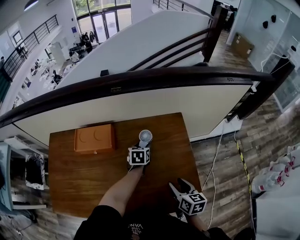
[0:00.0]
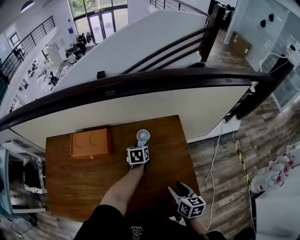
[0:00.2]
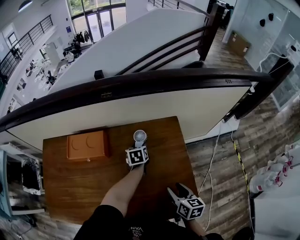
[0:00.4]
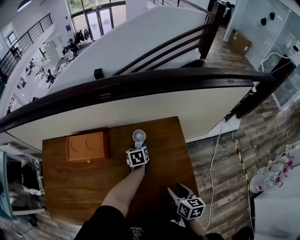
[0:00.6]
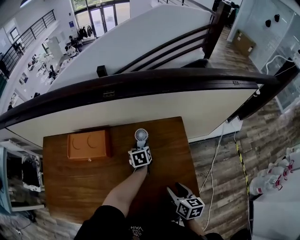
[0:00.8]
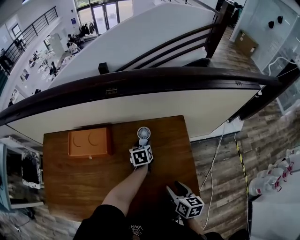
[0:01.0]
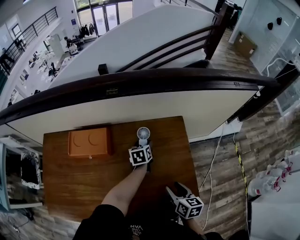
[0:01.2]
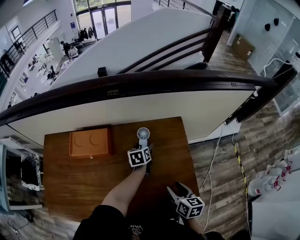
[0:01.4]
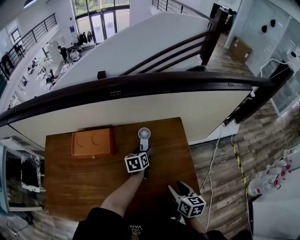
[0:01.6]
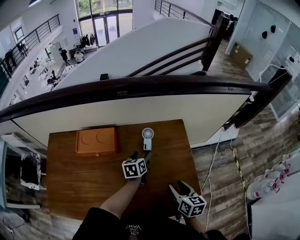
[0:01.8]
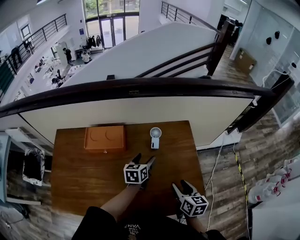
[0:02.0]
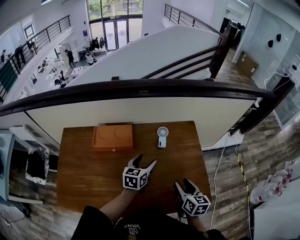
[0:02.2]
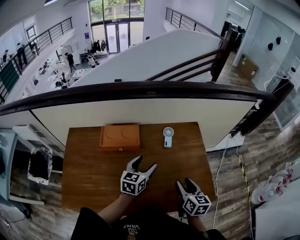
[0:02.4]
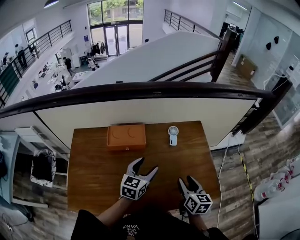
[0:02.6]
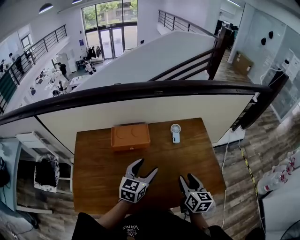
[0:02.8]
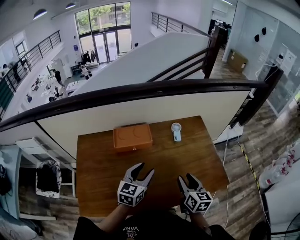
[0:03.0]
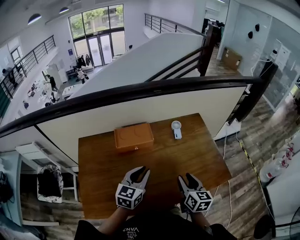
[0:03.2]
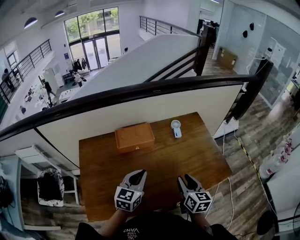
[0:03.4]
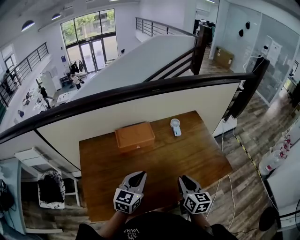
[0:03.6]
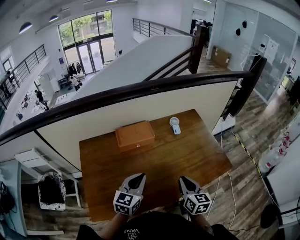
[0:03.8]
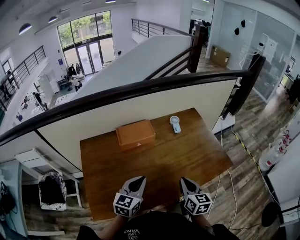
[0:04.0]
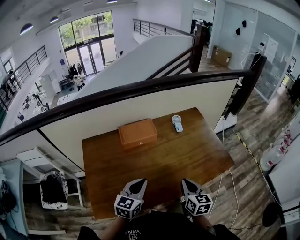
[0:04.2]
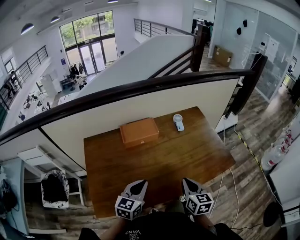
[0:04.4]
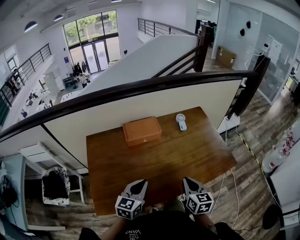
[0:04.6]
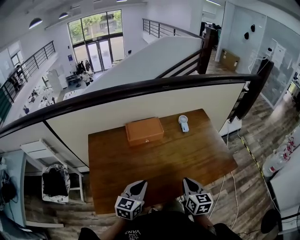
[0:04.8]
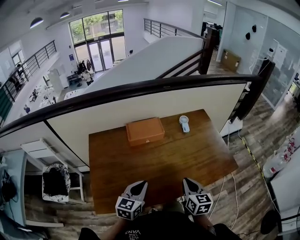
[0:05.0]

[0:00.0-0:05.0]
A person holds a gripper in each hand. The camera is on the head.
0:01.6 to 0:03.4: The right gripper shifts about 30 cm to the left, backward and upward, and turns by roughly 20 degrees. The left gripper heads backward, to the left and upward, covering some 40 cm, rotates approximately 40 degrees, and closes.
0:03.4 to 0:05.0: The left gripper travels backward by roughly 10 cm, while the right gripper heads backward, covering some 5 cm, and closes its fingers.

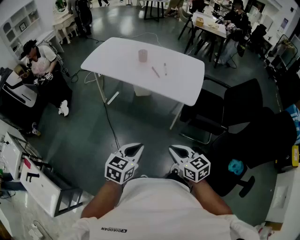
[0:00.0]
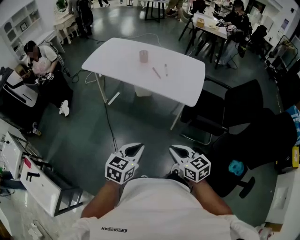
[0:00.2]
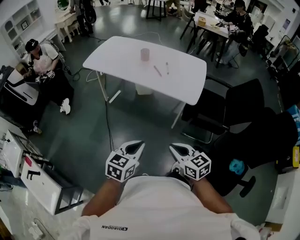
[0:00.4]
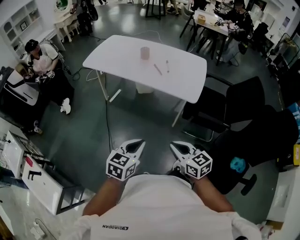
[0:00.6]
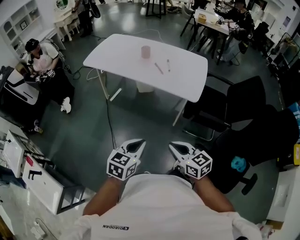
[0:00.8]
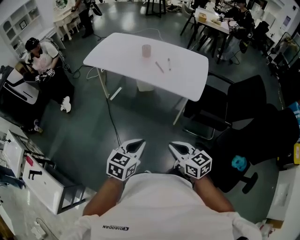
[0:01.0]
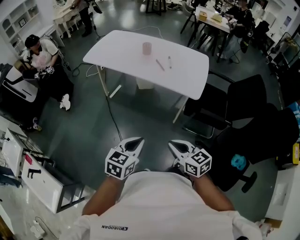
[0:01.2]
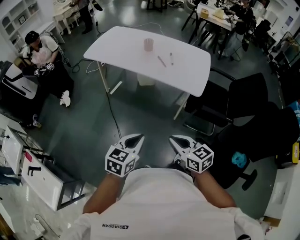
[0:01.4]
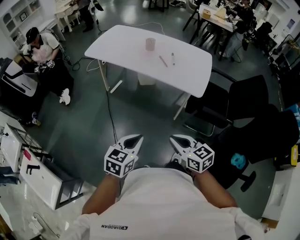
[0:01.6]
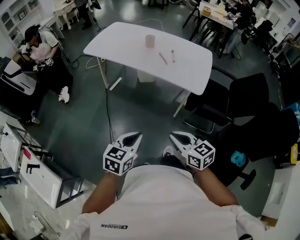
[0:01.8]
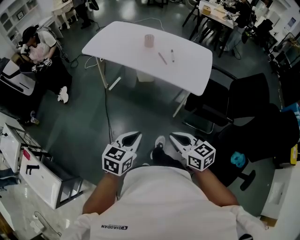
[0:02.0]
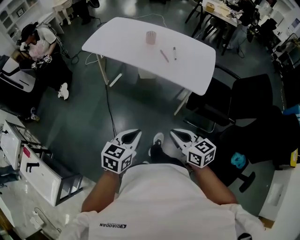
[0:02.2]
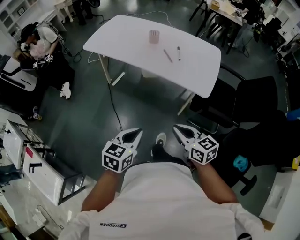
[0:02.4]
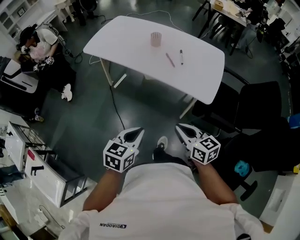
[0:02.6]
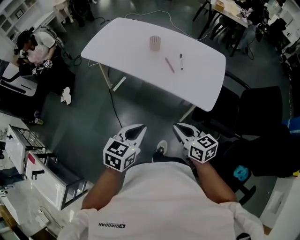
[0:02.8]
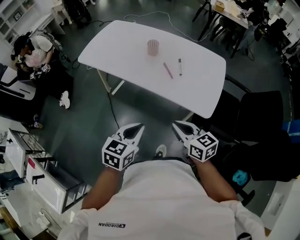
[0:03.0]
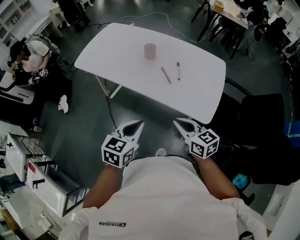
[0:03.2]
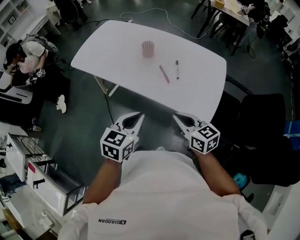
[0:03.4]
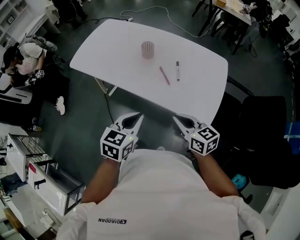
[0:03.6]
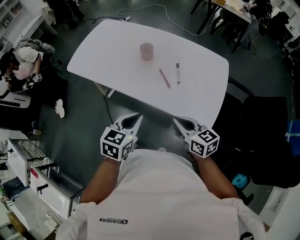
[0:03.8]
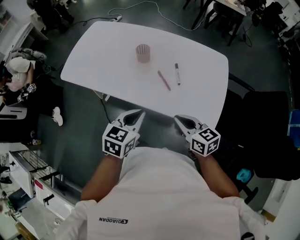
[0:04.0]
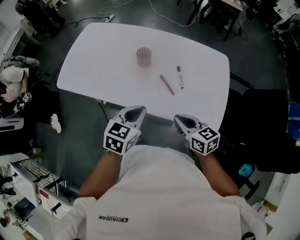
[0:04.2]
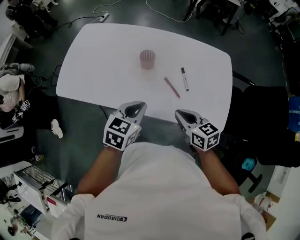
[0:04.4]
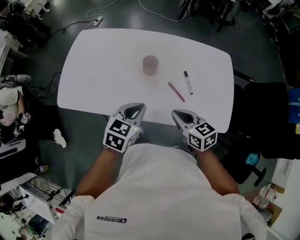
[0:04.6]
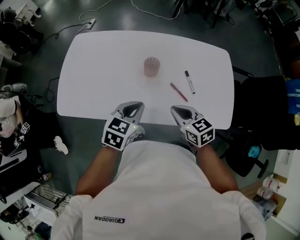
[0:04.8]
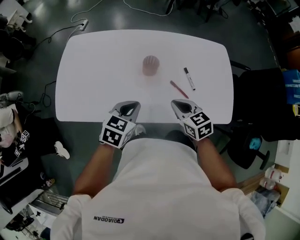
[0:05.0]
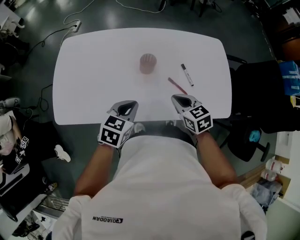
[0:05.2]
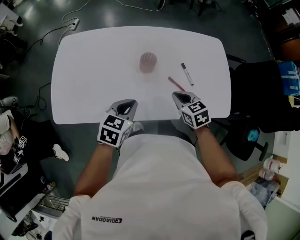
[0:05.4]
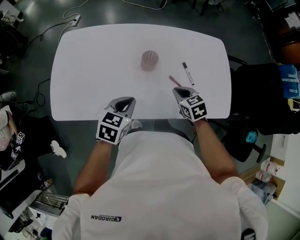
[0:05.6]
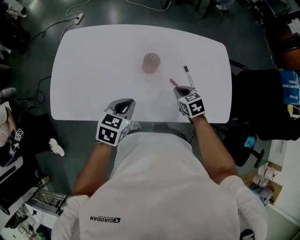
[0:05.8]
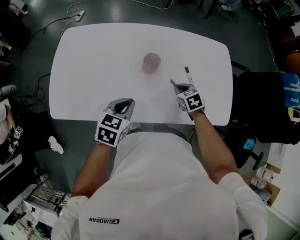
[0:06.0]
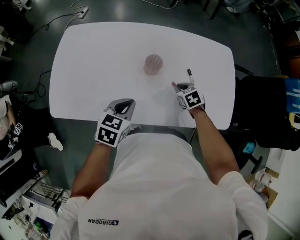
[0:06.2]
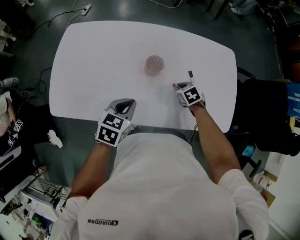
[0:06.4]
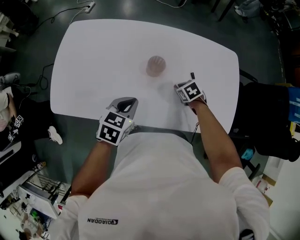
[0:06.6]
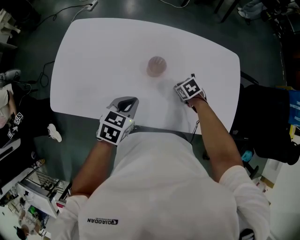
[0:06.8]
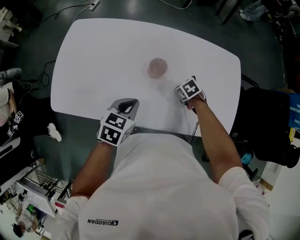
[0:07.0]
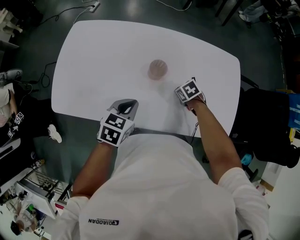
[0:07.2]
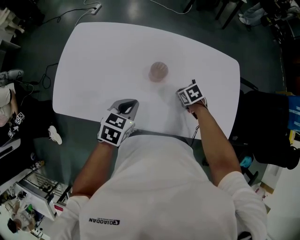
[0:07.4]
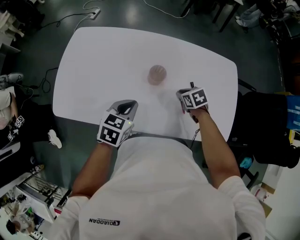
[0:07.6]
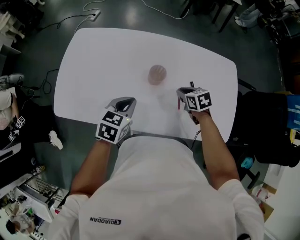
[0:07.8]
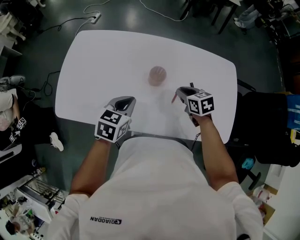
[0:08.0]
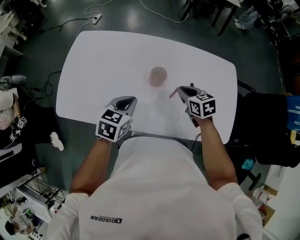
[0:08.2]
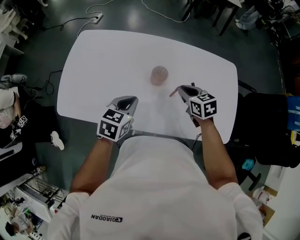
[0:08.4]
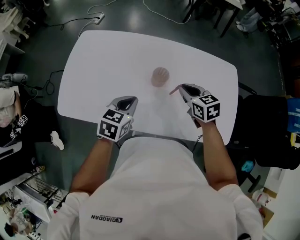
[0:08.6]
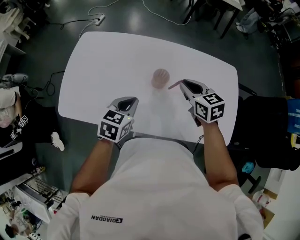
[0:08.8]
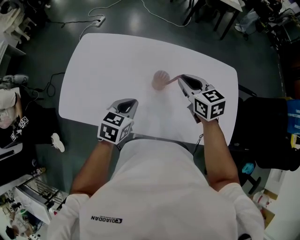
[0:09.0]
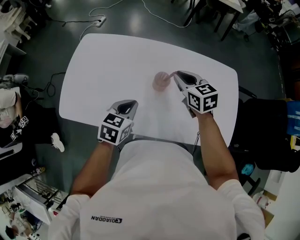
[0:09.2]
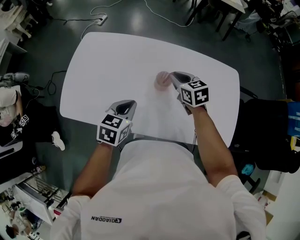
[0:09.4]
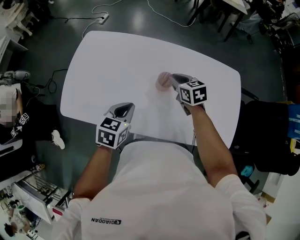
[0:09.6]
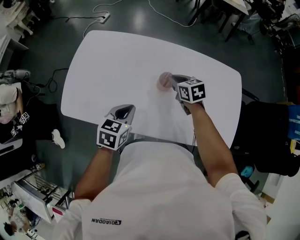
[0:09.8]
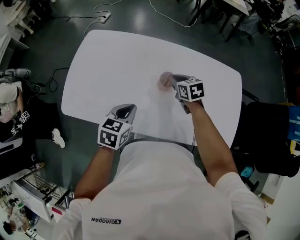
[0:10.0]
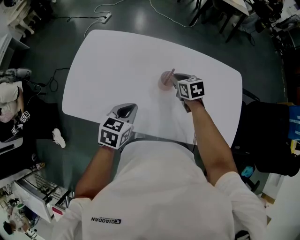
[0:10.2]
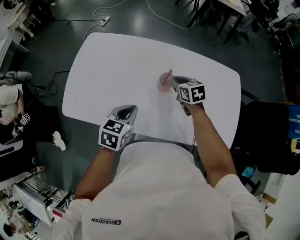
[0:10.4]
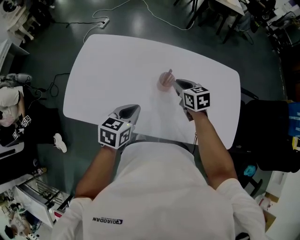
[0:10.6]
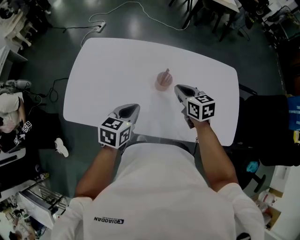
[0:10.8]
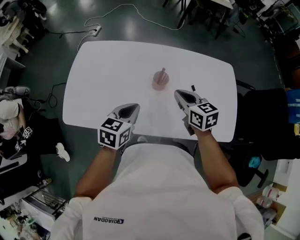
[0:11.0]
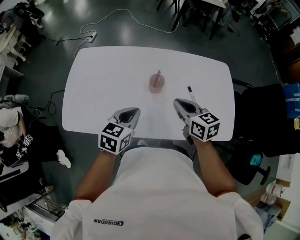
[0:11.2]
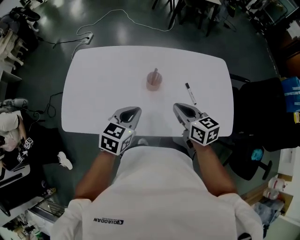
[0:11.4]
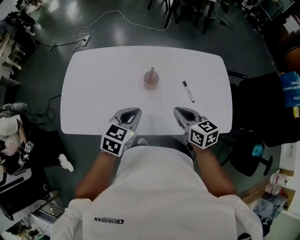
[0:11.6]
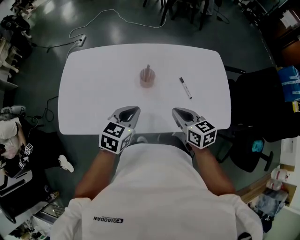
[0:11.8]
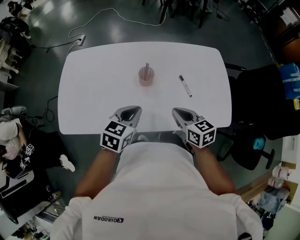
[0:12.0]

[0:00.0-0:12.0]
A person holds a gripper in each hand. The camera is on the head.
0:00.0 to 0:01.6: Both grippers travel together to the left, roughly 5 cm.
0:01.6 to 0:03.0: The two grippers go approximately 25 cm forward.
0:03.0 to 0:04.4: The grippers both shift forward by some 30 cm.
0:04.4 to 0:06.0: The right gripper goes about 20 cm forward and downward, and rotates approximately 30 degrees, while the left gripper goes about 15 cm to the left, forward and downward.
0:07.6 to 0:09.0: The right gripper shifts about 20 cm upward, and tips its fingers upward by roughly 30 degrees.
0:09.0 to 0:10.4: The right gripper is displaced downward by roughly 10 cm.
0:10.4 to 0:12.0: The right gripper moves backward, roughly 20 cm, while the left gripper is displaced to the right by about 10 cm.

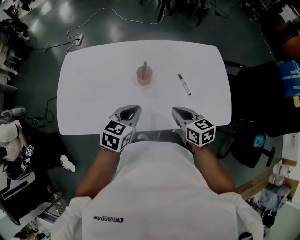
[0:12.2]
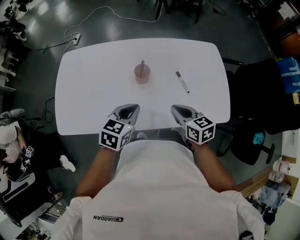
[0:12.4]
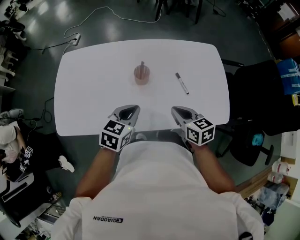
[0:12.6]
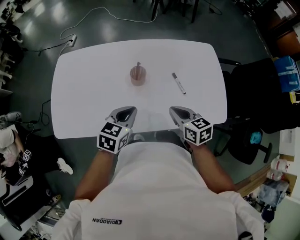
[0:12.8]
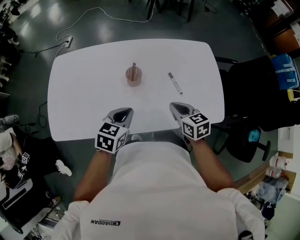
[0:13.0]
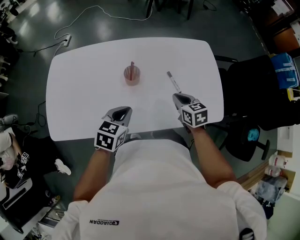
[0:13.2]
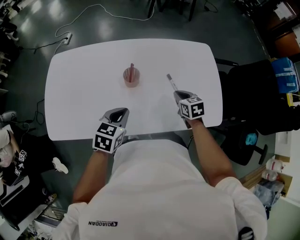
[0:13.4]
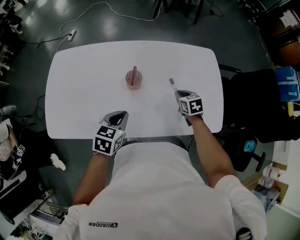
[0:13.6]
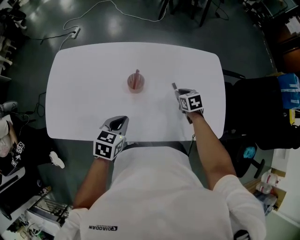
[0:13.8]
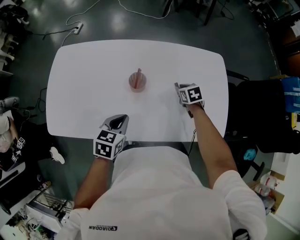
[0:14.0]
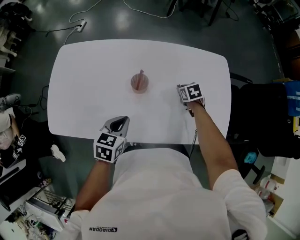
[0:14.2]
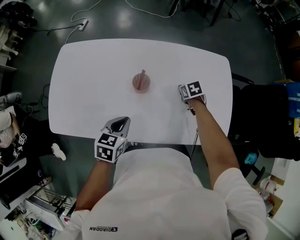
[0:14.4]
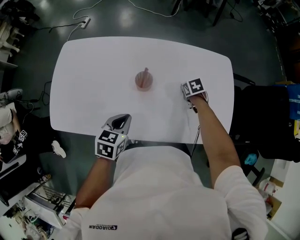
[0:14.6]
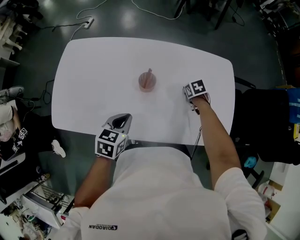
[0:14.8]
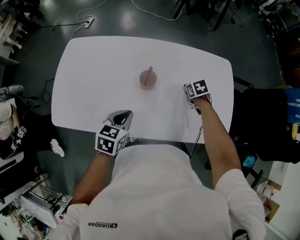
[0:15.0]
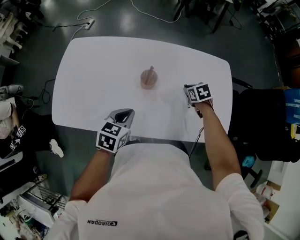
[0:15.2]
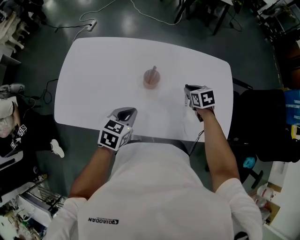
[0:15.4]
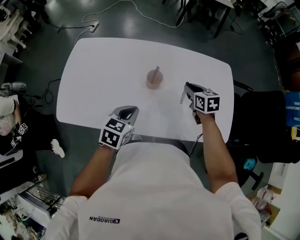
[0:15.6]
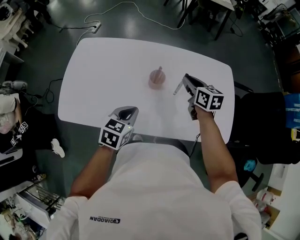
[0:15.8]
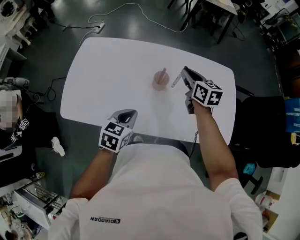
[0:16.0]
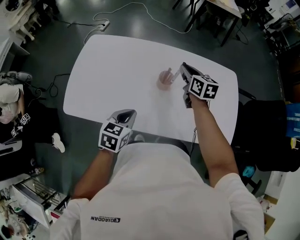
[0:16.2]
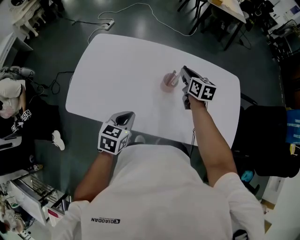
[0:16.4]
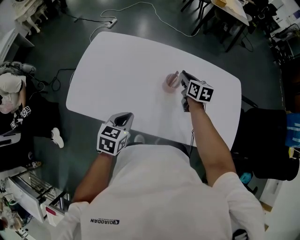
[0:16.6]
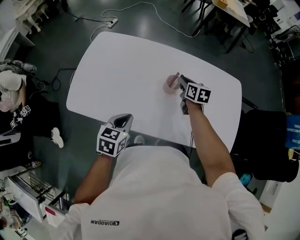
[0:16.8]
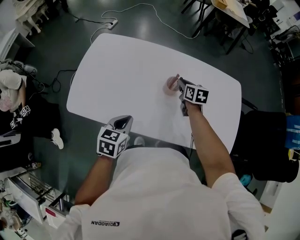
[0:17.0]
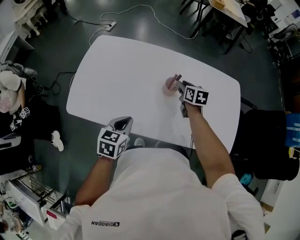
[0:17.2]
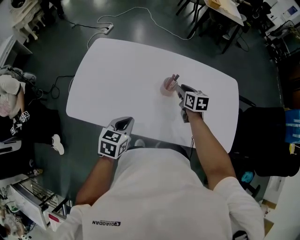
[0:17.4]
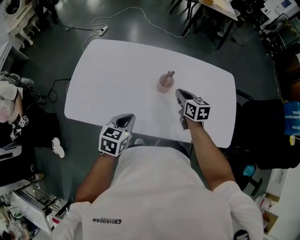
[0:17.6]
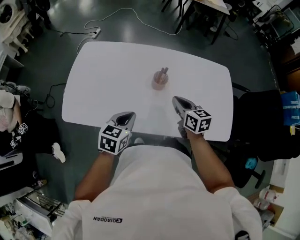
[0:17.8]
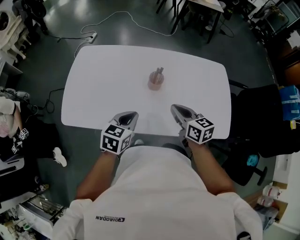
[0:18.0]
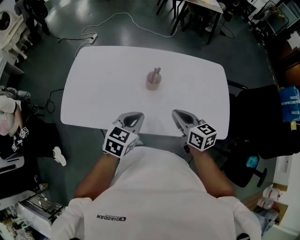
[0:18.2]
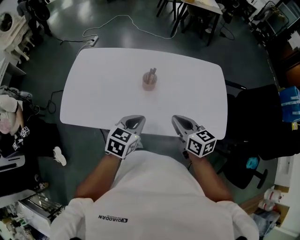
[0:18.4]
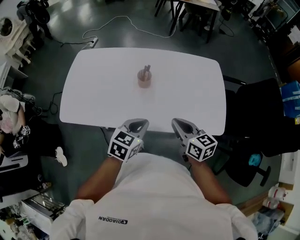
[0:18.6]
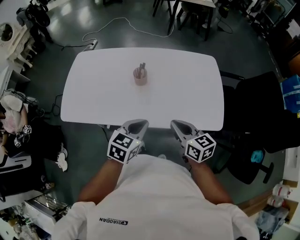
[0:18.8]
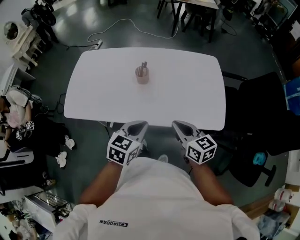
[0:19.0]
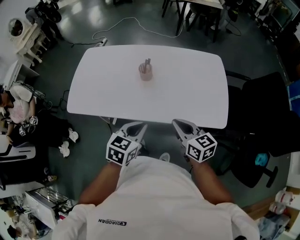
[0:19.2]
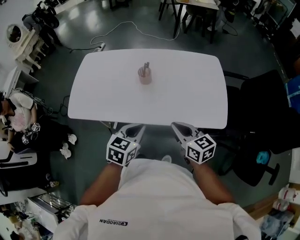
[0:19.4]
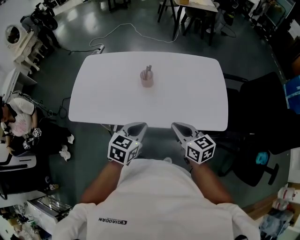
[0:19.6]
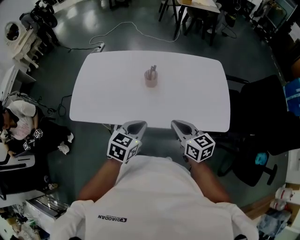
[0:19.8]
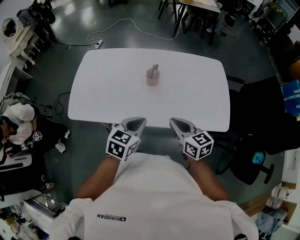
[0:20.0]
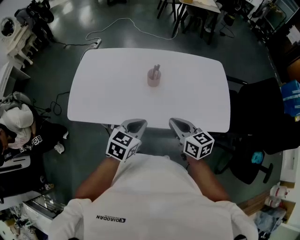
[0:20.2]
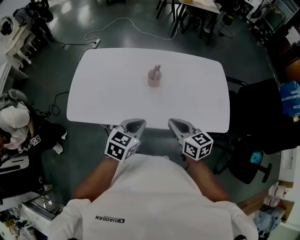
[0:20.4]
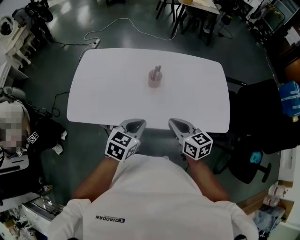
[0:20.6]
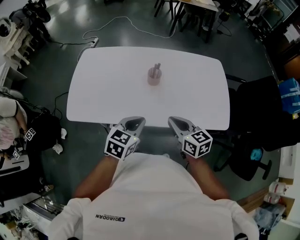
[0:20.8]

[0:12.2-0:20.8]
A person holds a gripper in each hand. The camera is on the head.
0:12.2 to 0:13.6: The right gripper moves forward, downward and to the right, some 20 cm, and swivels some 20 degrees; the left gripper ends up about 5 cm from where it was.
0:13.6 to 0:15.0: The right gripper is displaced forward by approximately 10 cm.
0:15.0 to 0:16.6: The right gripper moves to the left and upward, about 25 cm, and tips its fingers upward by approximately 40 degrees. The left gripper heads to the left and backward, covering approximately 10 cm.
0:16.6 to 0:18.0: The left gripper travels to the right by approximately 5 cm, while the right gripper shifts some 20 cm backward.
0:18.0 to 0:19.4: The left gripper moves to the right and backward, some 20 cm. Meanwhile the right gripper heads backward and to the right, covering about 20 cm.
0:19.4 to 0:20.8: The left gripper travels to the left and forward by approximately 10 cm. Meanwhile the right gripper goes roughly 10 cm to the left.